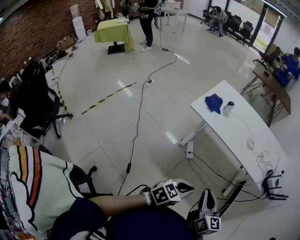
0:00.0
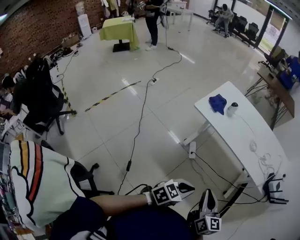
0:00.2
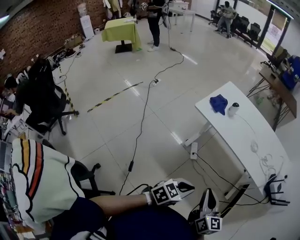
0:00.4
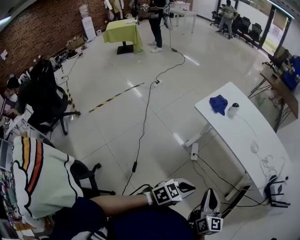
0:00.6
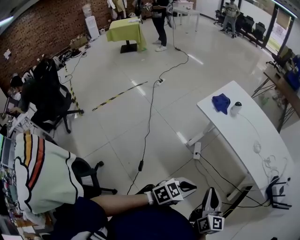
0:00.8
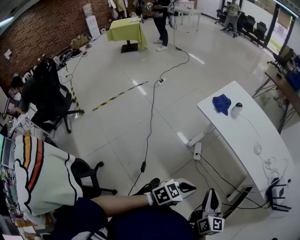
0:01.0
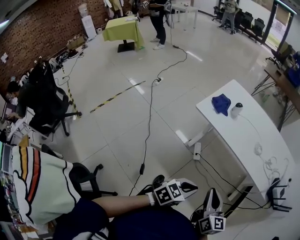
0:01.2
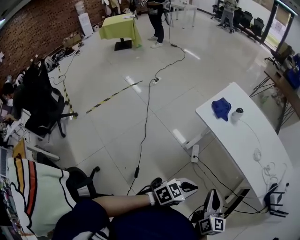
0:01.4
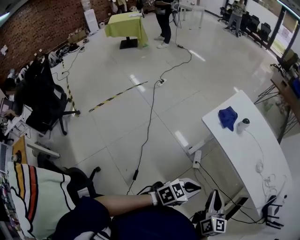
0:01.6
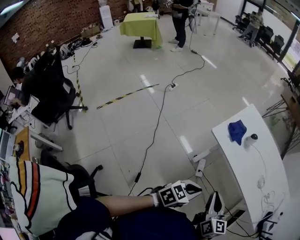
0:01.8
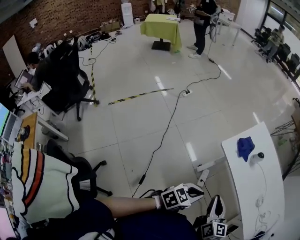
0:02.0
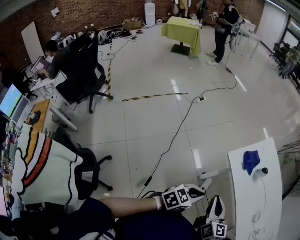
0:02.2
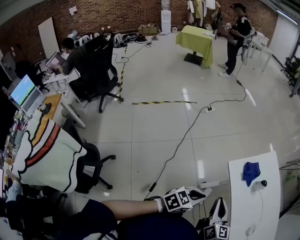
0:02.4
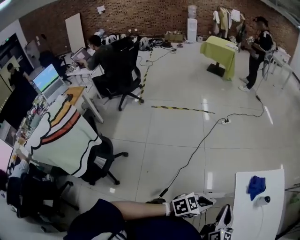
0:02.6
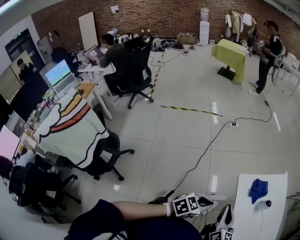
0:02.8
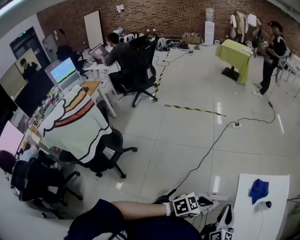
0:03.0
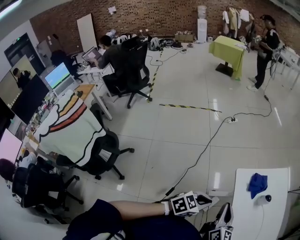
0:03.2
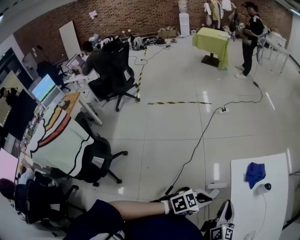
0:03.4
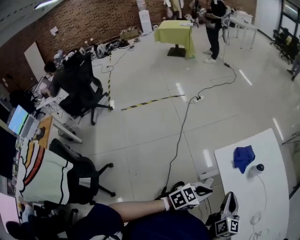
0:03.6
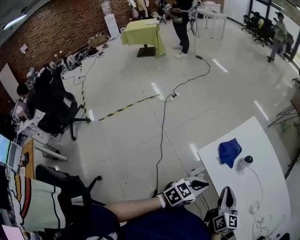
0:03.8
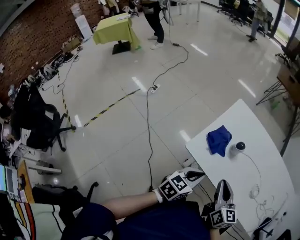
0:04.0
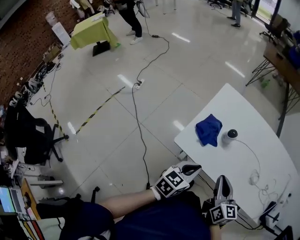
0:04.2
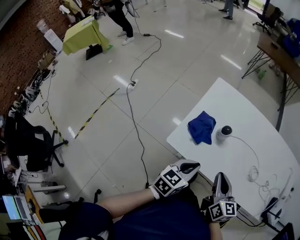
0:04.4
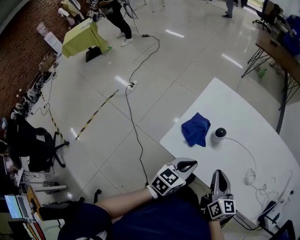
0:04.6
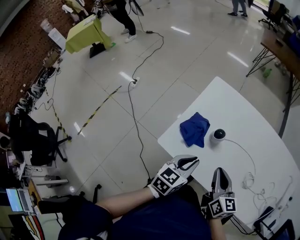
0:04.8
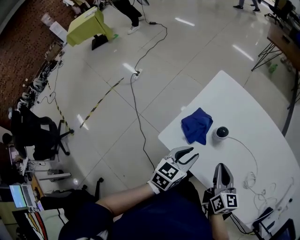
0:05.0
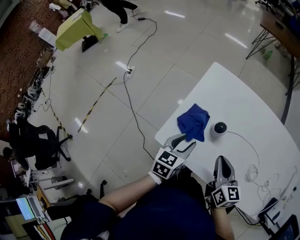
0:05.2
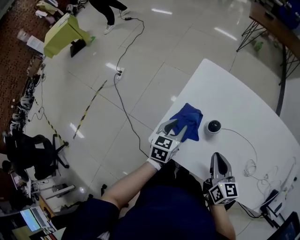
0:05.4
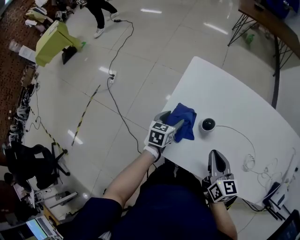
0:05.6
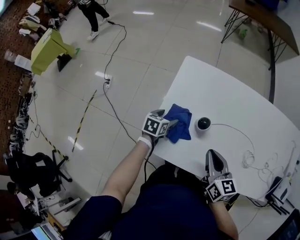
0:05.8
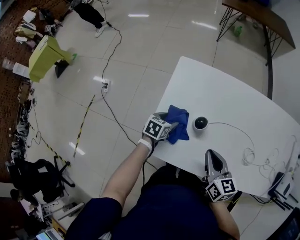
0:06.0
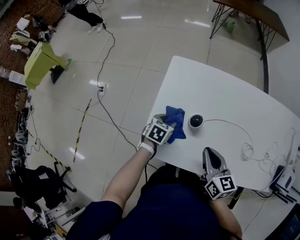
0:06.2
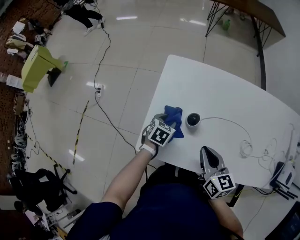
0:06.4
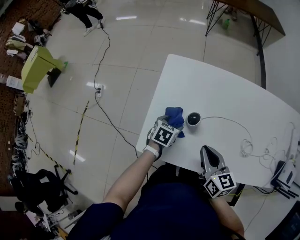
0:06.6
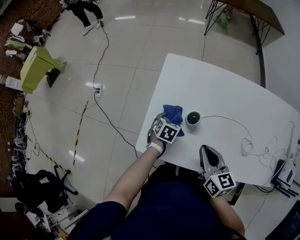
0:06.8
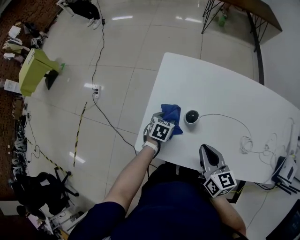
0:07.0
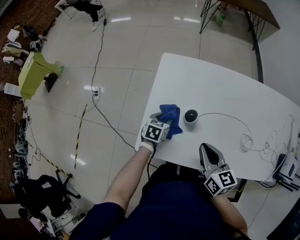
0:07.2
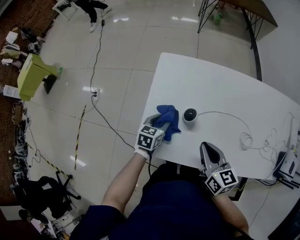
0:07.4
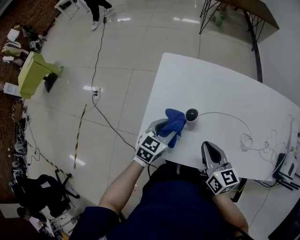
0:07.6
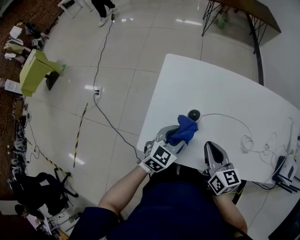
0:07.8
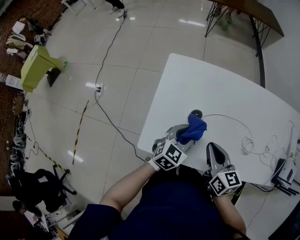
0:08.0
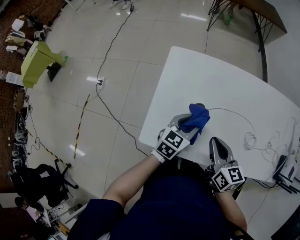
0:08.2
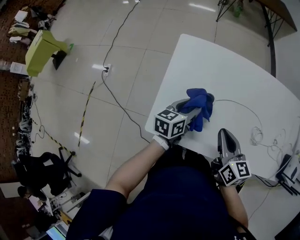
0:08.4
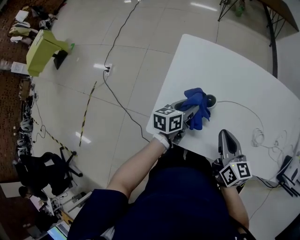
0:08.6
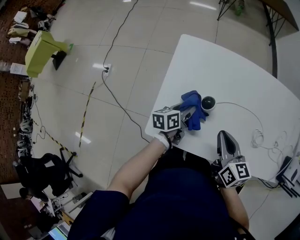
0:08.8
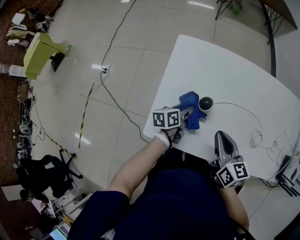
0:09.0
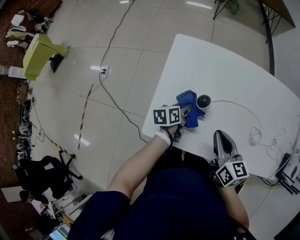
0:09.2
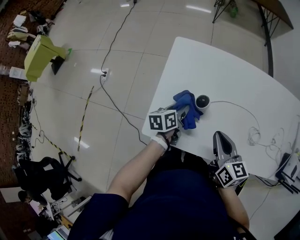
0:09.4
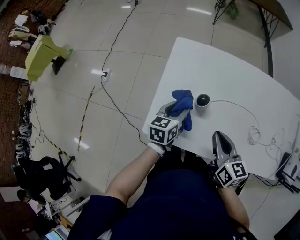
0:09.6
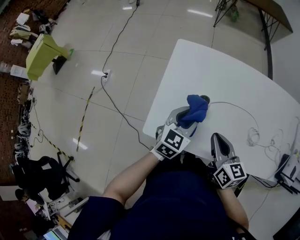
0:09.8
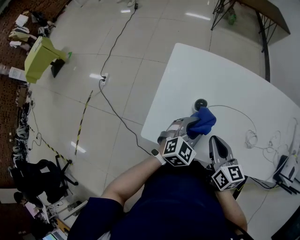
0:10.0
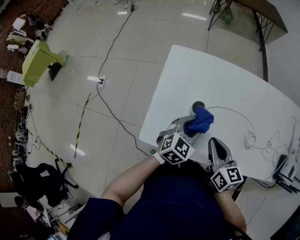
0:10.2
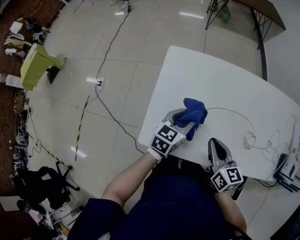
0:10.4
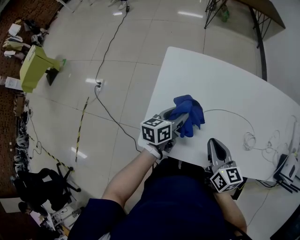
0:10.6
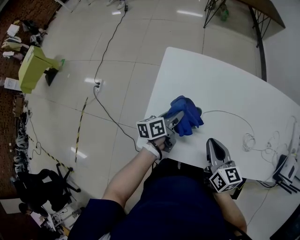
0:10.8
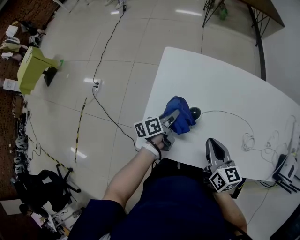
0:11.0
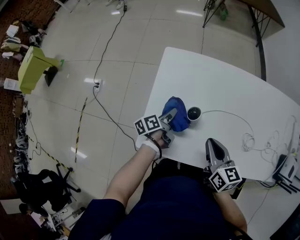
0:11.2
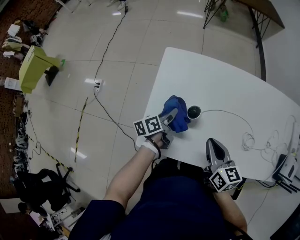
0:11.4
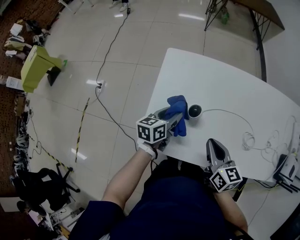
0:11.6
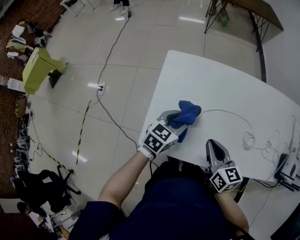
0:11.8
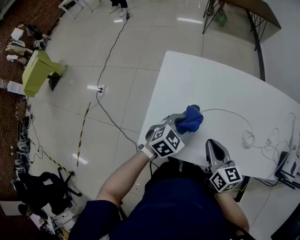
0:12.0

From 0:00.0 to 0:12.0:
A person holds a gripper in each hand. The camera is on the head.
From 0:00.0 to 0:01.6: Both grippers travel together forward and to the left, approximately 15 cm.
From 0:01.6 to 0:03.0: The right gripper moves some 20 cm, and changes its angle by some 30 degrees. The left gripper shifts by about 15 cm, and changes its angle by roughly 40 degrees.
From 0:03.0 to 0:04.4: The right gripper shifts by approximately 20 cm, and changes its angle by some 40 degrees, while the left gripper moves about 20 cm, and rotates about 30 degrees.
From 0:04.4 to 0:06.0: The right gripper goes roughly 10 cm forward; the left gripper moves forward and downward, approximately 25 cm, changes its angle by some 30 degrees, and opens up.
From 0:06.0 to 0:07.6: The left gripper travels upward and to the right by approximately 10 cm, rotates some 30 degrees, and closes.
From 0:07.6 to 0:09.0: The left gripper heads downward, covering about 10 cm, and rolls counterclockwise, seen from behind, by about 50 degrees.
From 0:09.0 to 0:10.4: The left gripper moves upward, some 10 cm, and rolls clockwise, seen from behind, by some 40 degrees.
From 0:10.4 to 0:12.0: The left gripper travels downward and back again, approximately 10 cm each way, and swivels some 30 degrees.

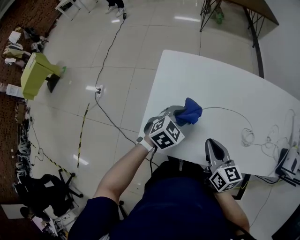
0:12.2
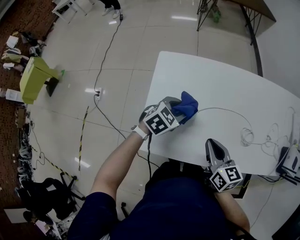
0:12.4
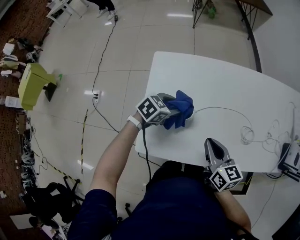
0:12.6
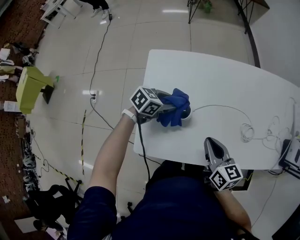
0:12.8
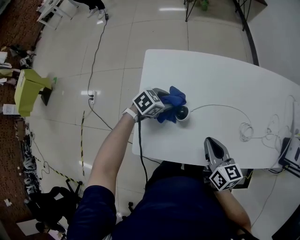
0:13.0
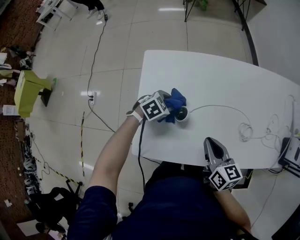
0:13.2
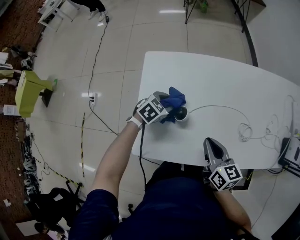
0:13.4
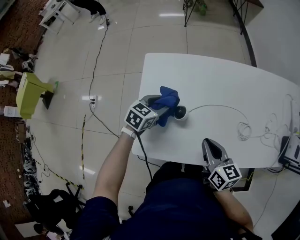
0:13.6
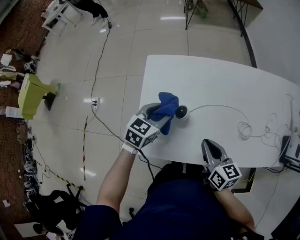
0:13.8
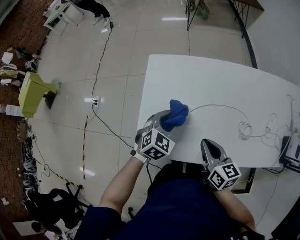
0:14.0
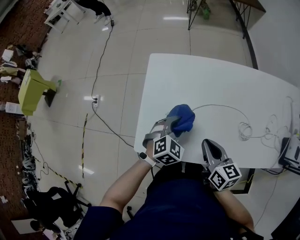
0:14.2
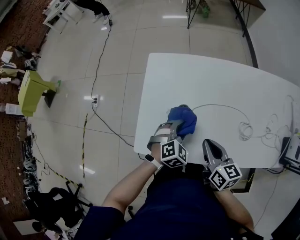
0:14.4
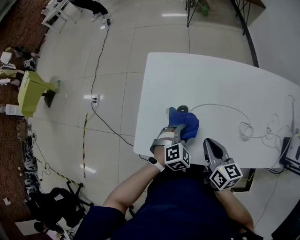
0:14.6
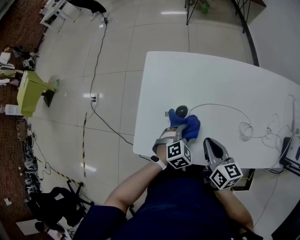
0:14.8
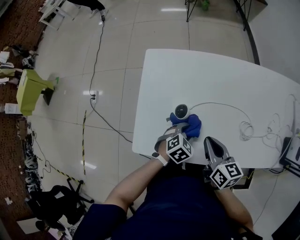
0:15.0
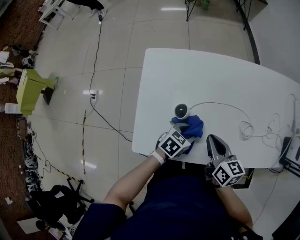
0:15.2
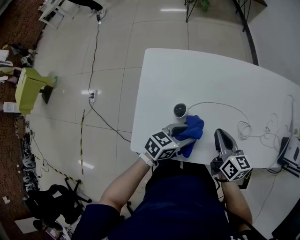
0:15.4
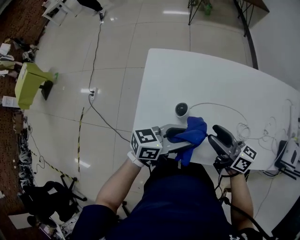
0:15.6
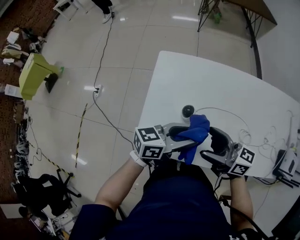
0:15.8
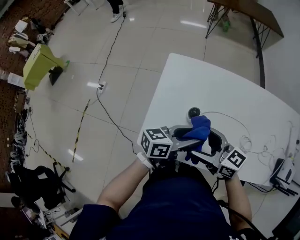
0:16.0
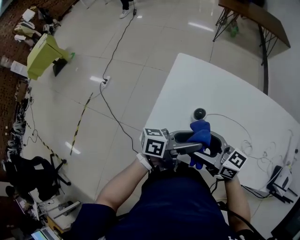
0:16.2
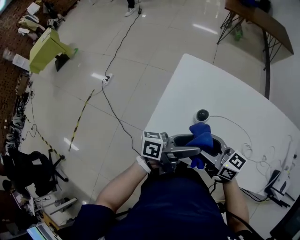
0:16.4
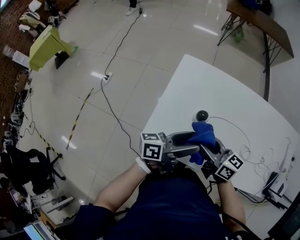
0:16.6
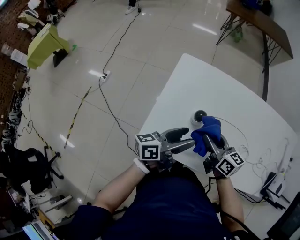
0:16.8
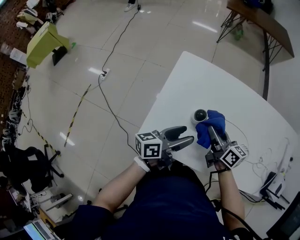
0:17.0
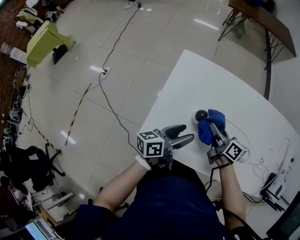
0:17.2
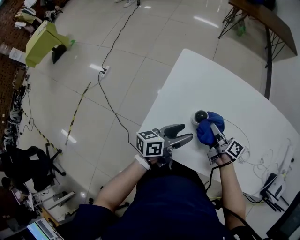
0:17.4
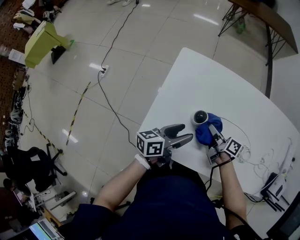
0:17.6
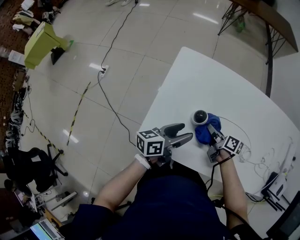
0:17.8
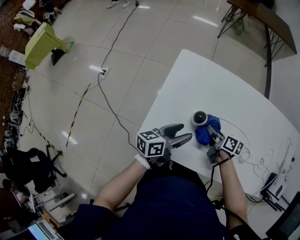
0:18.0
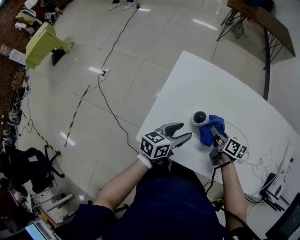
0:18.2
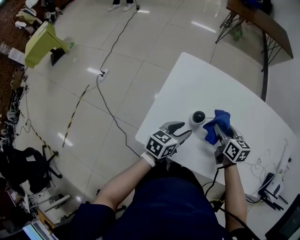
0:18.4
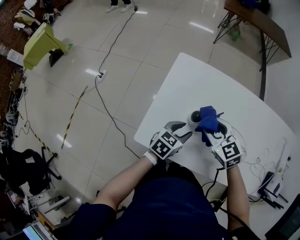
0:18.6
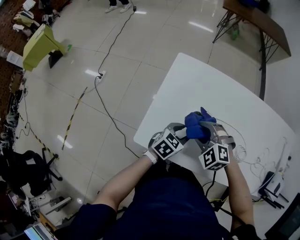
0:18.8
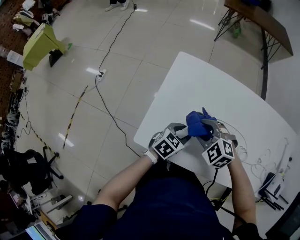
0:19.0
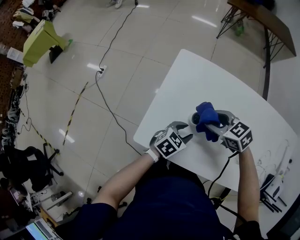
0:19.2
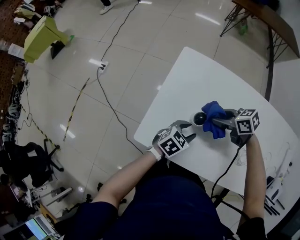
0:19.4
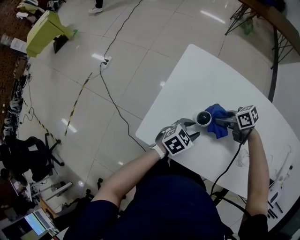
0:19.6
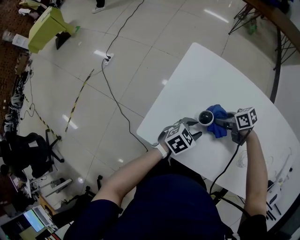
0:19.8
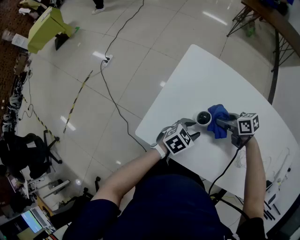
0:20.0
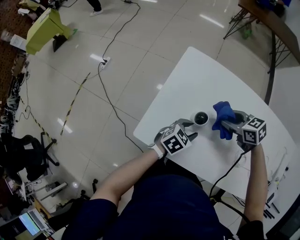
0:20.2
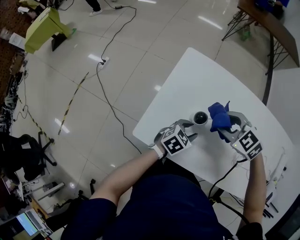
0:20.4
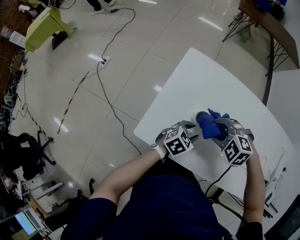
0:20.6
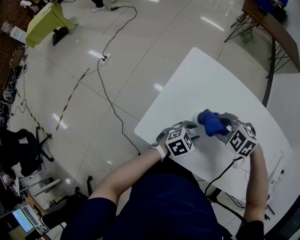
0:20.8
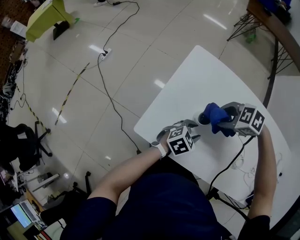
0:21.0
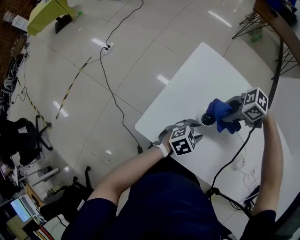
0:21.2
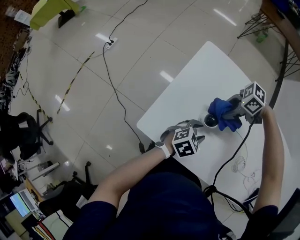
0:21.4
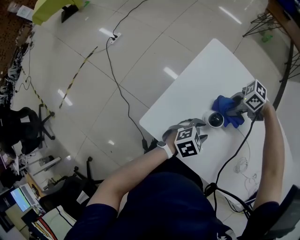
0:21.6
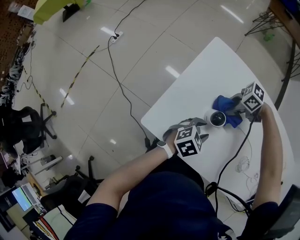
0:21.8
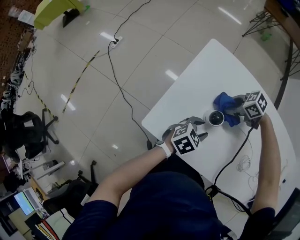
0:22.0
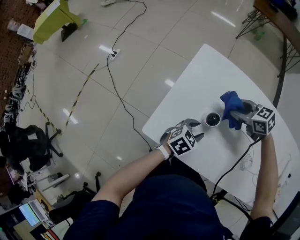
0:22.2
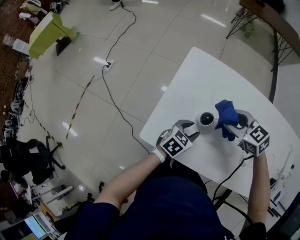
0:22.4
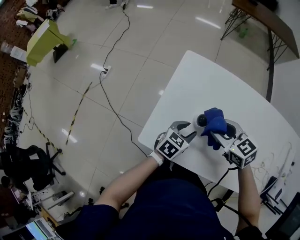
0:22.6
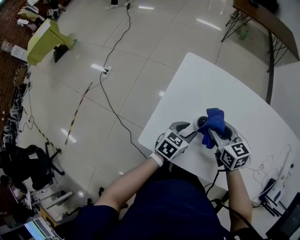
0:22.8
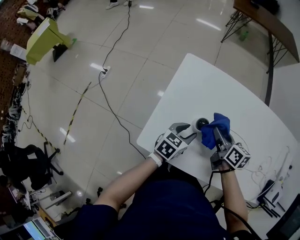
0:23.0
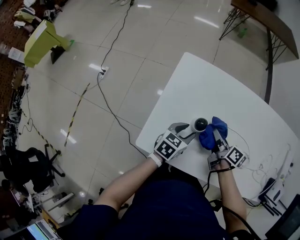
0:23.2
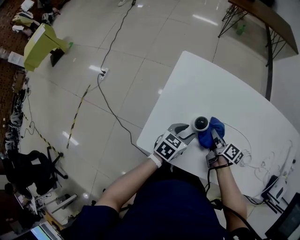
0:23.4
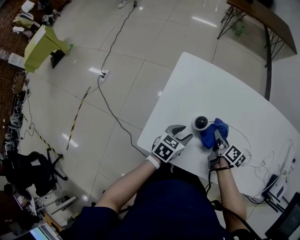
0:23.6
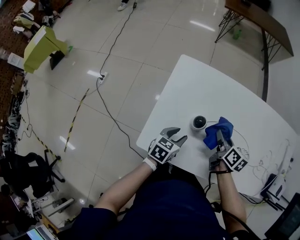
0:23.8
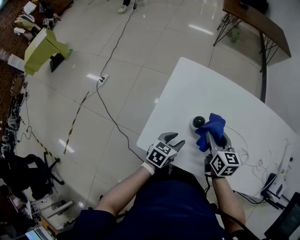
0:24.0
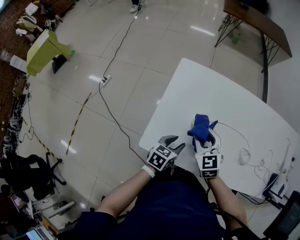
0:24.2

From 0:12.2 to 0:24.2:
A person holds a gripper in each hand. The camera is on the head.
From 0:12.2 to 0:13.8: The left gripper goes about 5 cm to the left, and moves approximately 10 cm downward and comes back.
From 0:13.8 to 0:15.2: The left gripper shifts roughly 20 cm to the right, downward and backward, and rotates some 20 degrees.
From 0:15.2 to 0:16.6: The right gripper ends up some 10 cm from where it was, rotates approximately 40 degrees, and opens its fingers, while the left gripper travels upward by about 20 cm, tips its fingers upward by approximately 60 degrees, and opens.
From 0:16.6 to 0:18.2: The right gripper heads downward, forward and to the right, covering roughly 20 cm, and swivels about 30 degrees; the left gripper heads downward, covering roughly 10 cm, and rotates about 40 degrees.
From 0:18.2 to 0:19.8: The left gripper shifts approximately 10 cm downward, and swivels some 30 degrees. The right gripper reaches about 10 cm upward, then returns, and changes its angle by approximately 50 degrees.
From 0:19.8 to 0:21.2: The right gripper shifts about 10 cm upward, and swivels some 40 degrees.
From 0:21.2 to 0:22.6: The right gripper moves approximately 10 cm downward and comes back, and rotates roughly 60 degrees. The left gripper shifts by about 5 cm.
From 0:22.6 to 0:24.2: The left gripper goes some 5 cm backward. Meanwhile the right gripper travels downward and back again, about 15 cm each way, and changes its angle by roughly 30 degrees.
